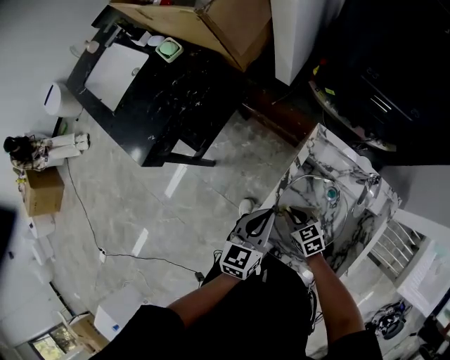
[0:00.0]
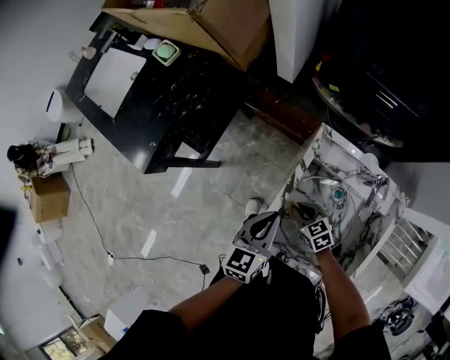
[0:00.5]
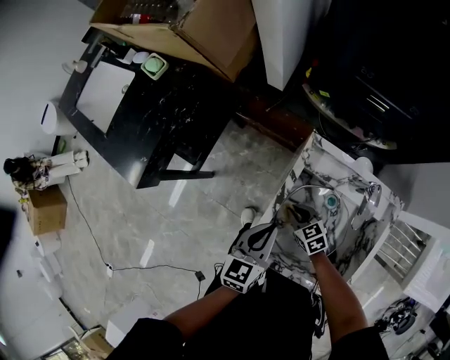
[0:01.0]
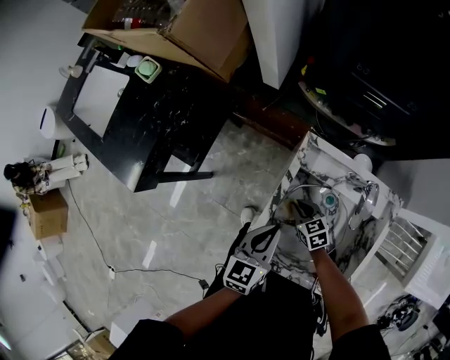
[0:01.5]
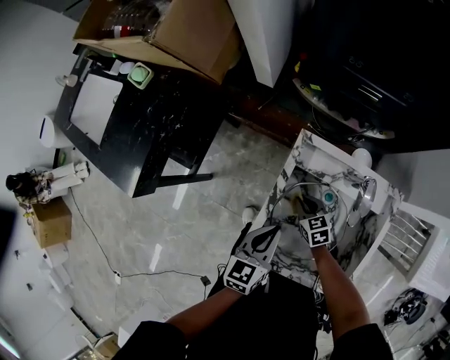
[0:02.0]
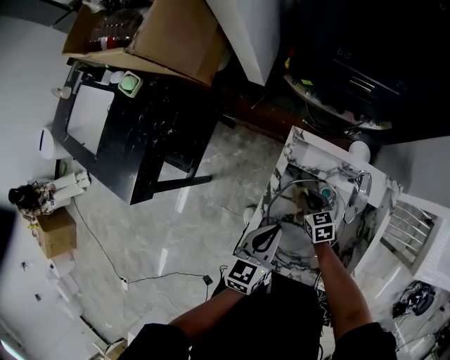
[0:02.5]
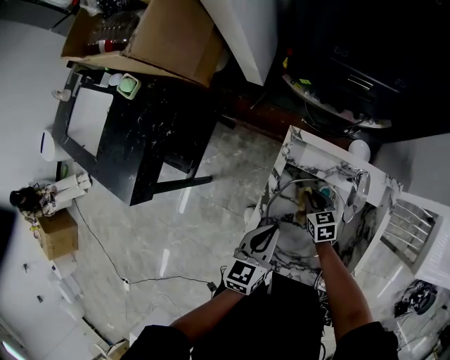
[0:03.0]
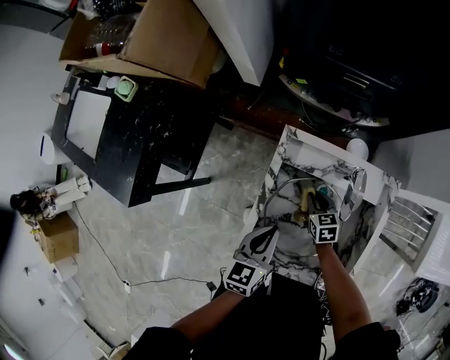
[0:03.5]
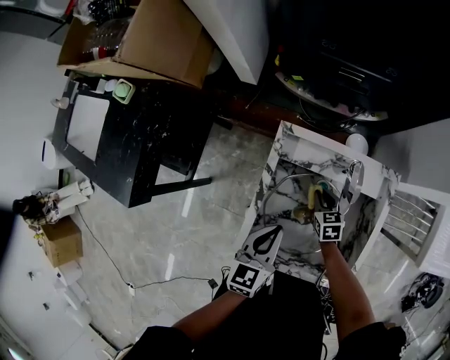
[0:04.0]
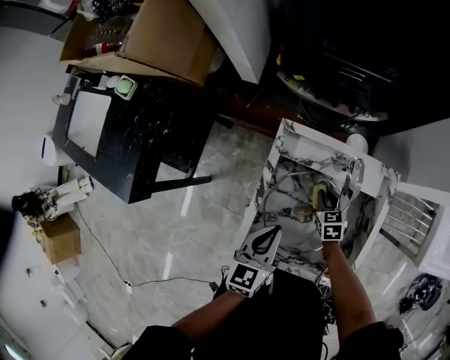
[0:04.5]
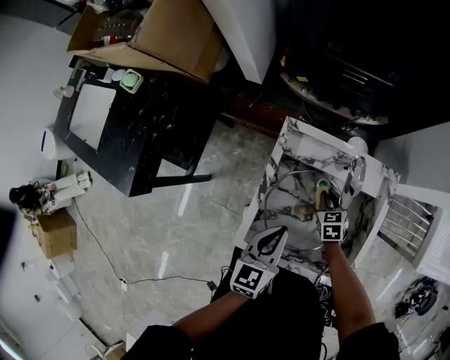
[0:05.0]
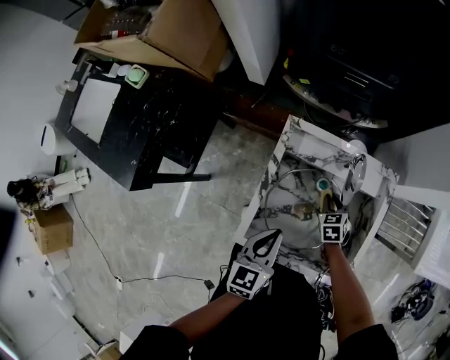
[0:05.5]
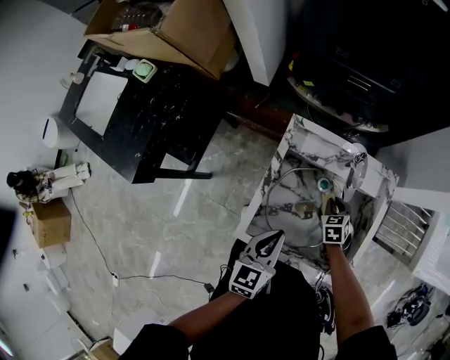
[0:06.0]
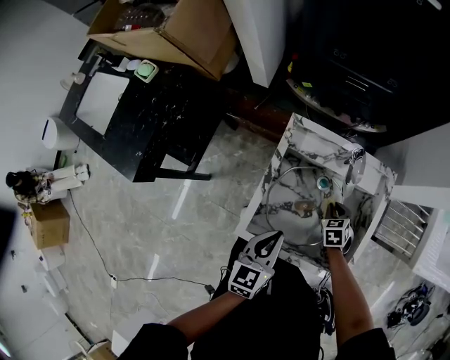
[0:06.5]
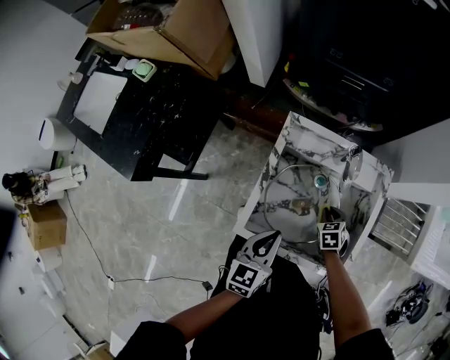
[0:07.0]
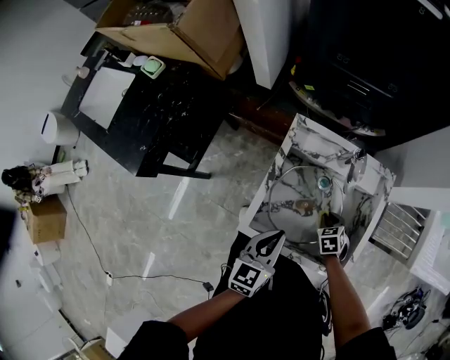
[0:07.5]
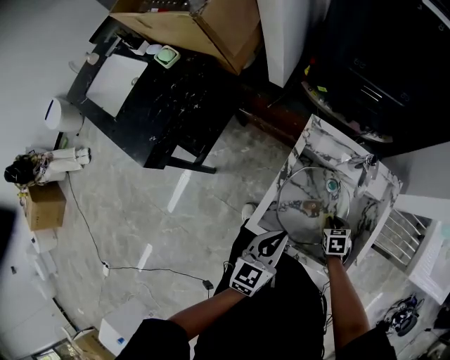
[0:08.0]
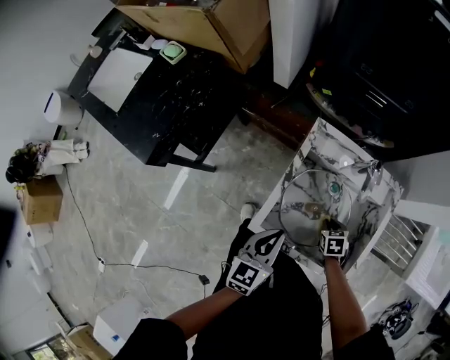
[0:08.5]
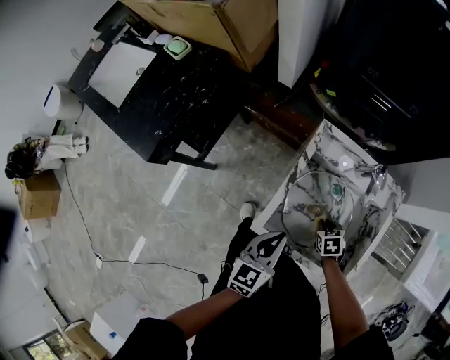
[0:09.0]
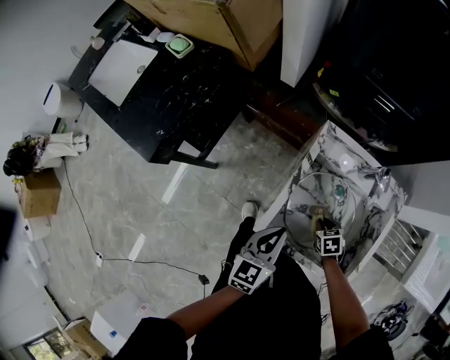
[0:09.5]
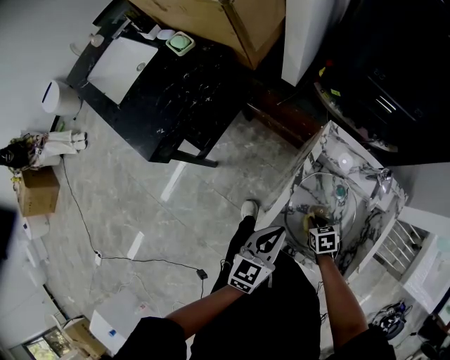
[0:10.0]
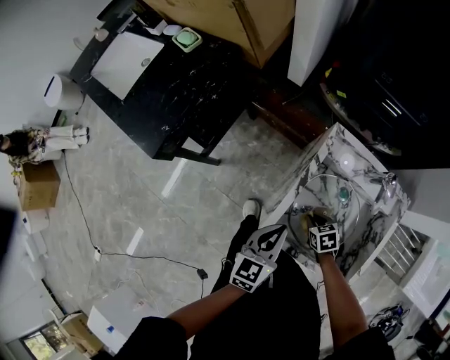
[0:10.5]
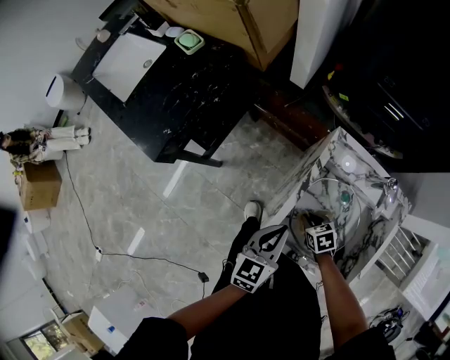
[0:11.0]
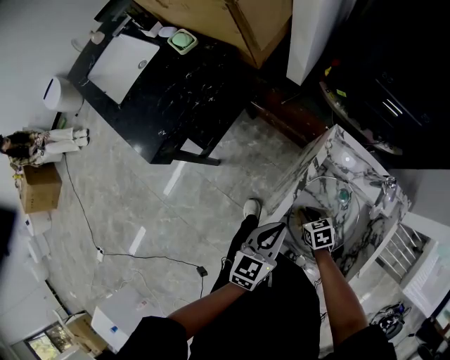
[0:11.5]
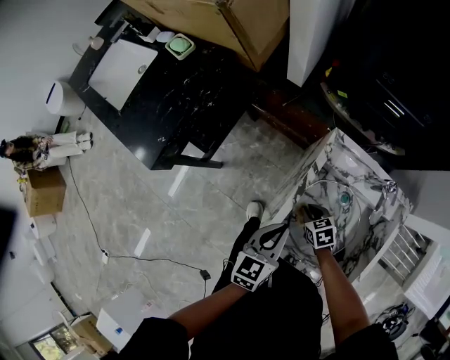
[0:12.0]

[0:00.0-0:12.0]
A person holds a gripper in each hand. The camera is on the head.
0:00.0 to 0:02.0: The right gripper heads forward and to the right, covering some 10 cm. The left gripper moves approximately 5 cm.
0:02.0 to 0:04.0: The right gripper goes about 10 cm to the right.
0:04.0 to 0:06.0: The right gripper is displaced to the right by approximately 5 cm; the left gripper goes approximately 5 cm backward.
0:06.0 to 0:08.0: The right gripper is displaced backward by about 10 cm.
0:08.0 to 0:10.0: The right gripper shifts about 10 cm to the left. The left gripper heads to the left, covering about 5 cm.
0:10.0 to 0:12.0: The right gripper moves forward, some 5 cm.

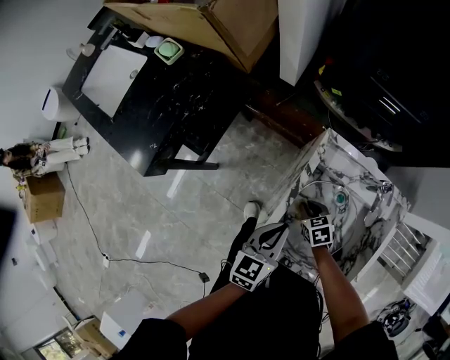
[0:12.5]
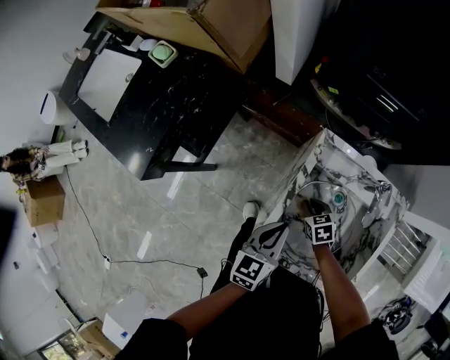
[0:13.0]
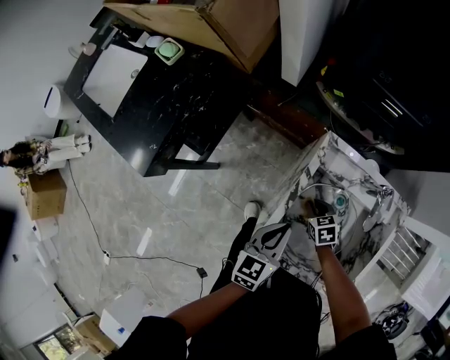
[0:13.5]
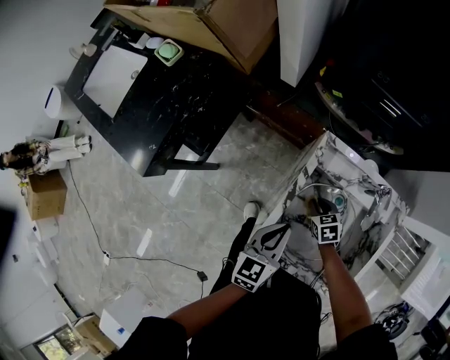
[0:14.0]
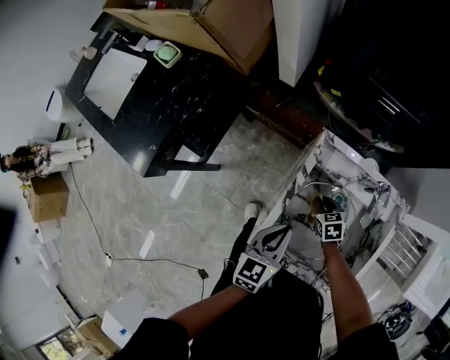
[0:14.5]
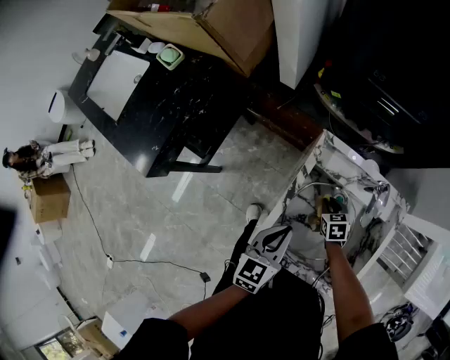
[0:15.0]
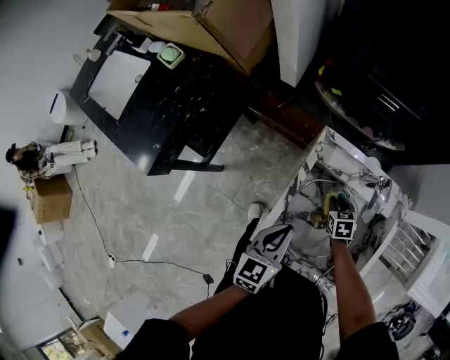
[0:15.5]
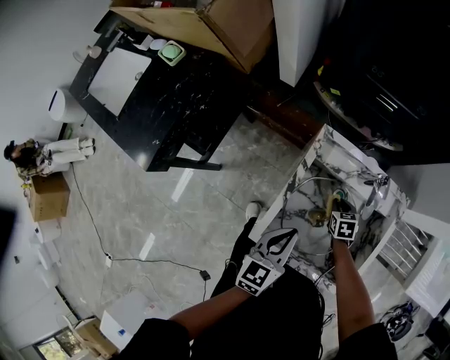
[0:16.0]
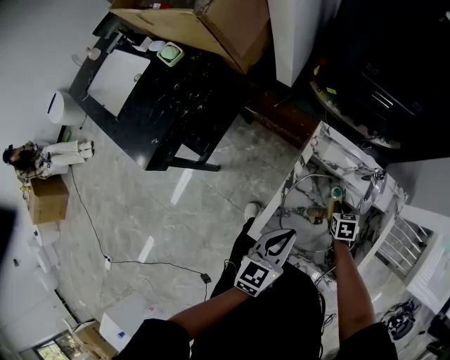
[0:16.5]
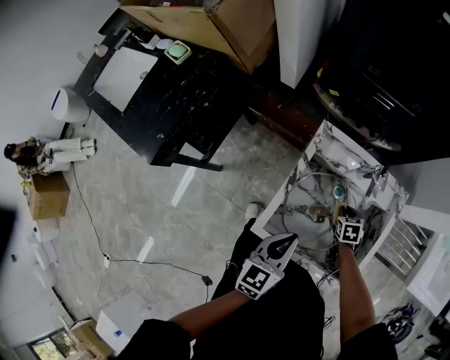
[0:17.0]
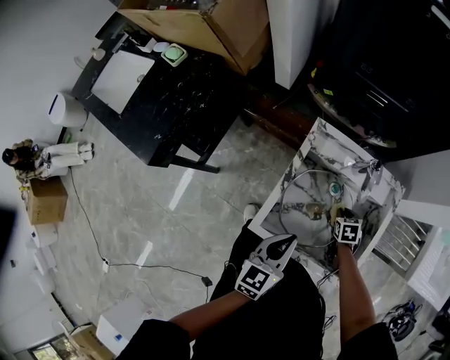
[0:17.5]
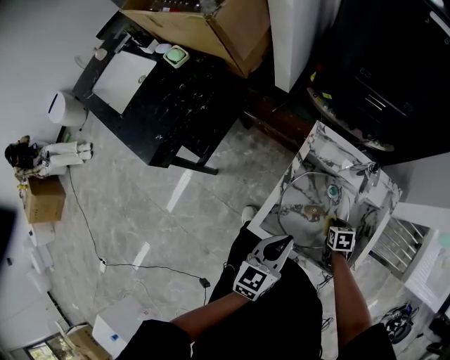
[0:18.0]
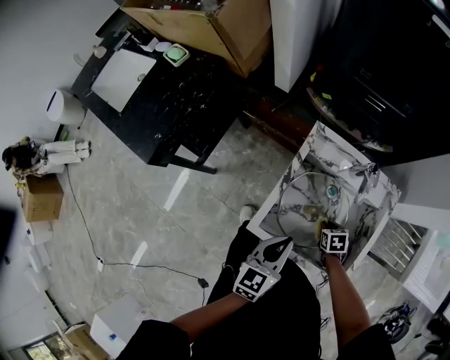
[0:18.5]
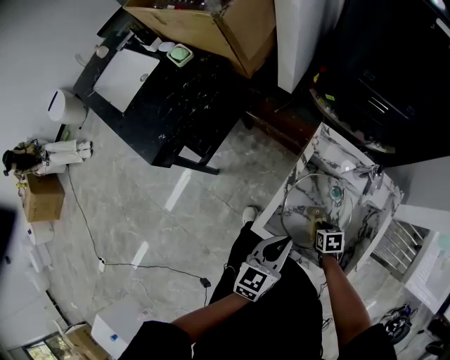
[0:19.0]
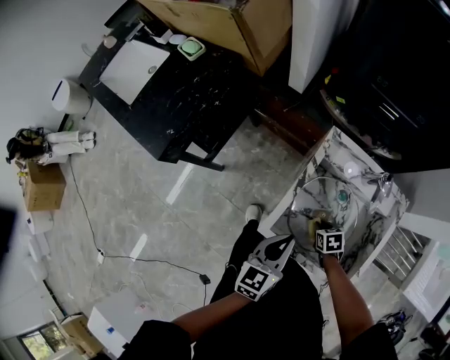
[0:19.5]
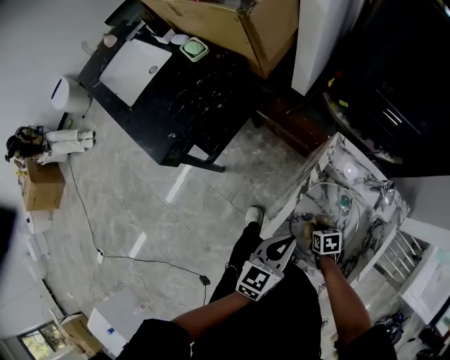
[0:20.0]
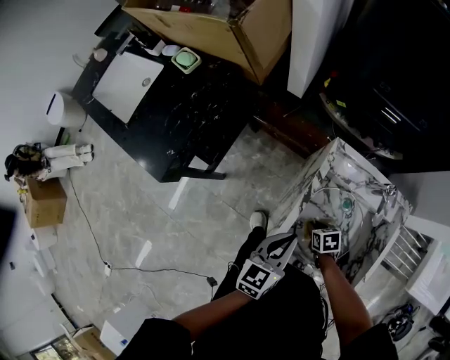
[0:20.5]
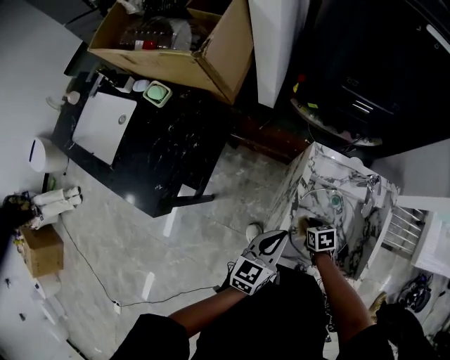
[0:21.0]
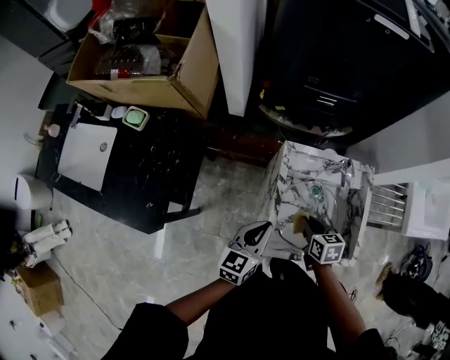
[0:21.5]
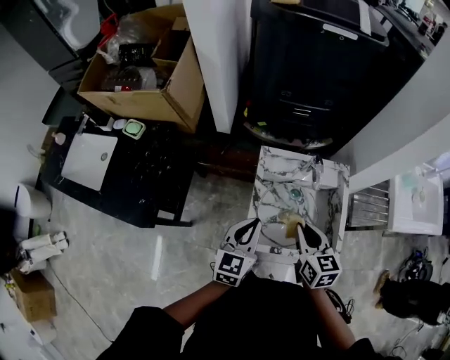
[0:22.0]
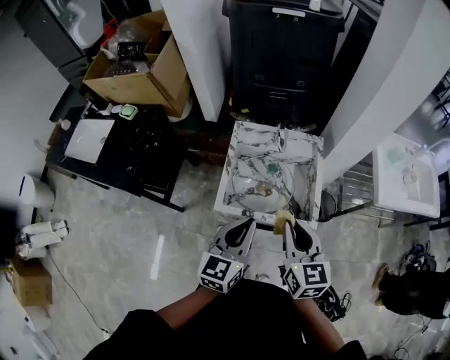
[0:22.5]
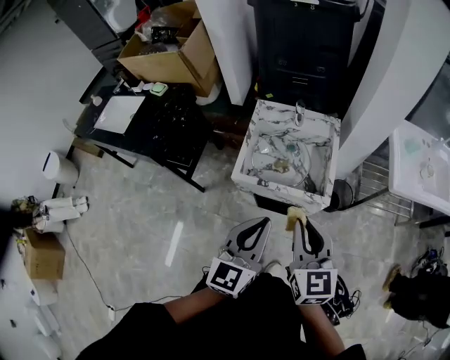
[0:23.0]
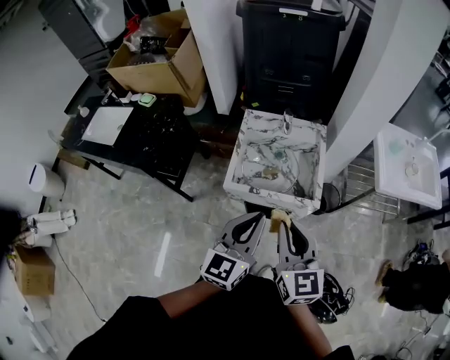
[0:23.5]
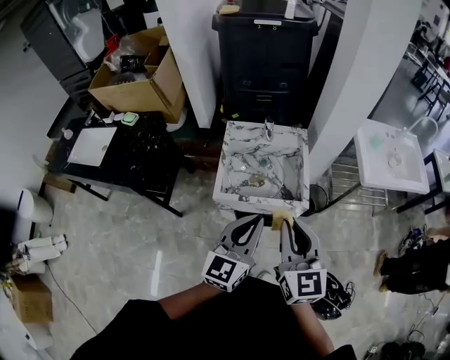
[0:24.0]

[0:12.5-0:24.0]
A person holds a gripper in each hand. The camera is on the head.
0:12.5 to 0:14.5: The right gripper moves to the right, approximately 5 cm.
0:14.5 to 0:16.5: The left gripper ends up approximately 5 cm from where it was, while the right gripper heads to the right, covering about 10 cm.
0:16.5 to 0:18.5: The right gripper shifts roughly 10 cm backward.
0:18.5 to 0:20.0: The right gripper moves to the left, roughly 10 cm. Meanwhile the left gripper shifts by about 5 cm.
0:20.0 to 0:22.0: The right gripper is displaced upward by about 35 cm, and angles its fingers upward, by roughly 40 degrees; the left gripper goes approximately 10 cm upward, and swivels some 20 degrees.
0:22.0 to 0:24.0: The right gripper shifts approximately 30 cm backward and upward, and turns by approximately 30 degrees, while the left gripper moves backward, to the right and upward, roughly 35 cm.

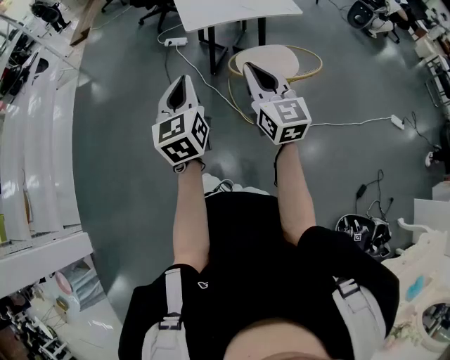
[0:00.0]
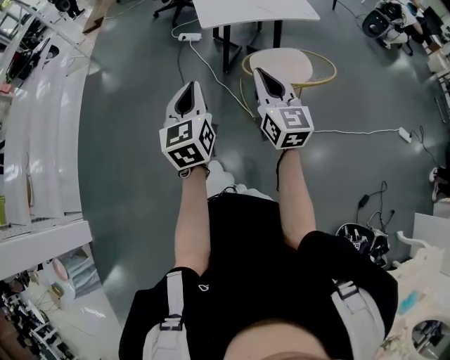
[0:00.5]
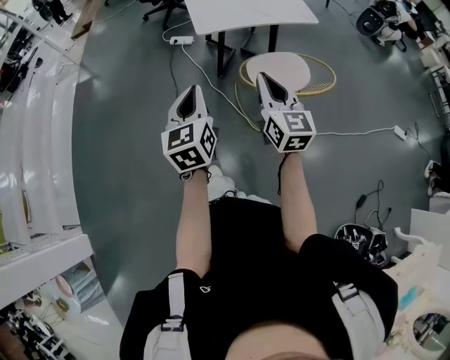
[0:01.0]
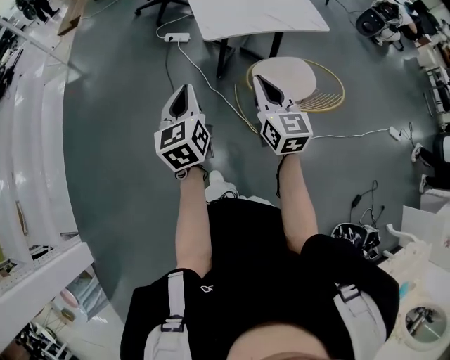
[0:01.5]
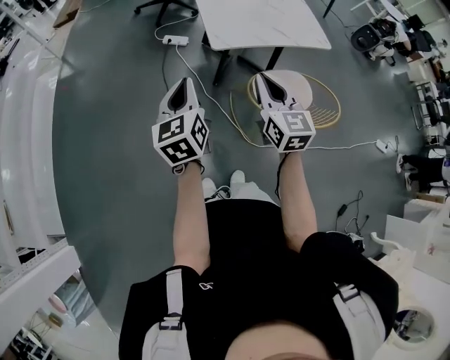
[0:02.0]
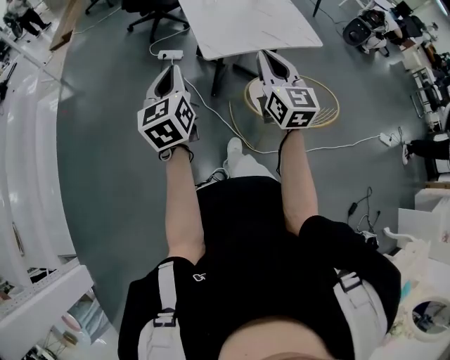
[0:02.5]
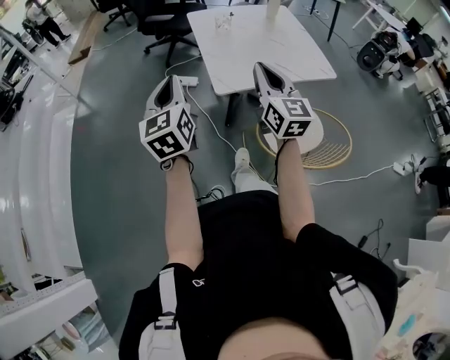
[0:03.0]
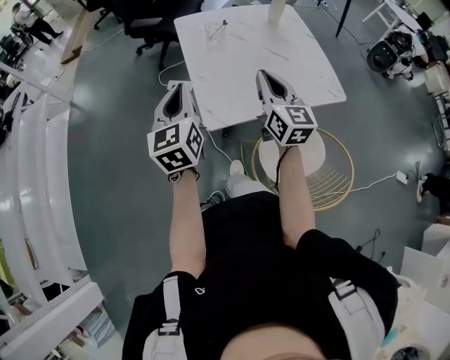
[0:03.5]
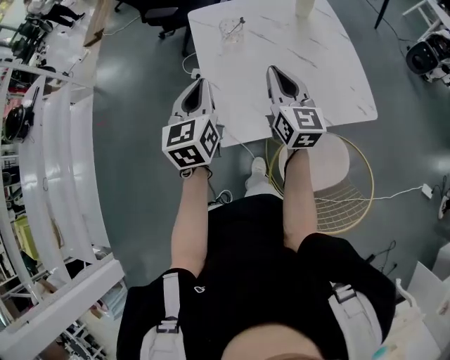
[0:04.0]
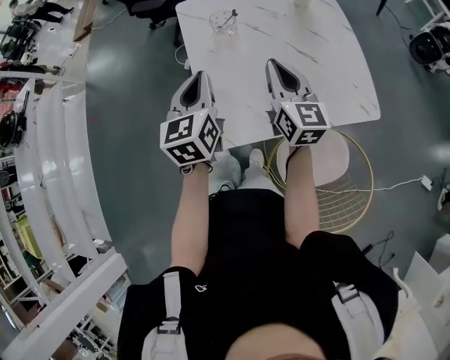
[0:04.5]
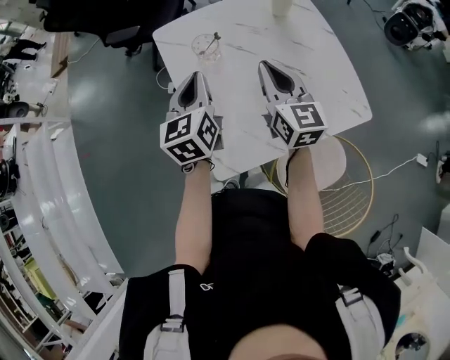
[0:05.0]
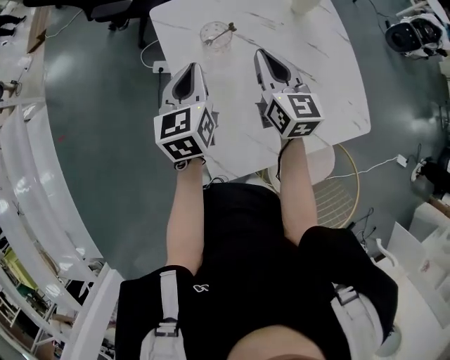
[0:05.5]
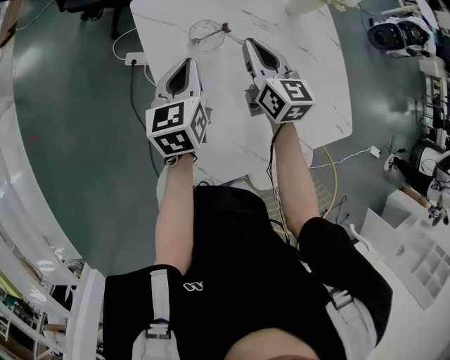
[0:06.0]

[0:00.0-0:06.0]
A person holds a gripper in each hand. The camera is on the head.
0:00.0 to 0:02.0: The two grippers go approximately 25 cm forward and to the left.
0:02.0 to 0:04.0: The two grippers travel together, forward, about 50 cm.
0:04.0 to 0:06.0: The grippers both shift forward and downward by roughly 25 cm.
